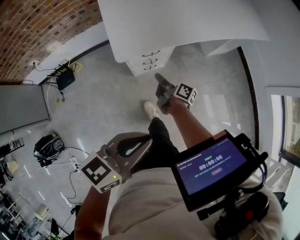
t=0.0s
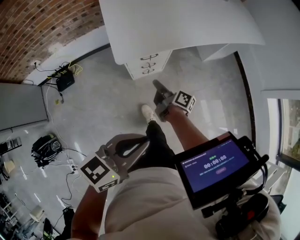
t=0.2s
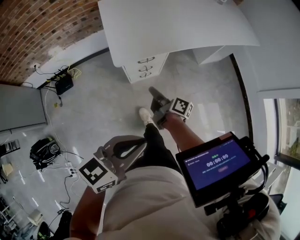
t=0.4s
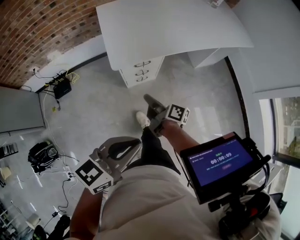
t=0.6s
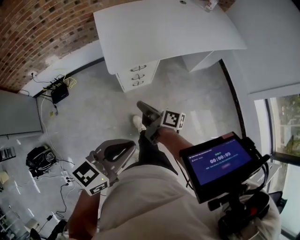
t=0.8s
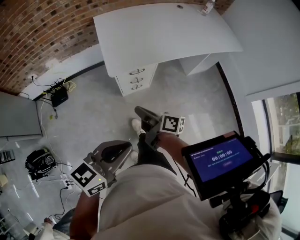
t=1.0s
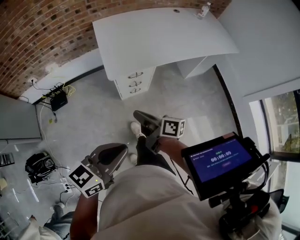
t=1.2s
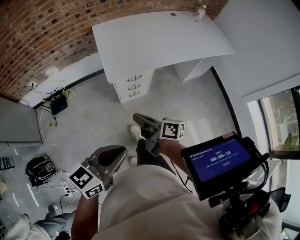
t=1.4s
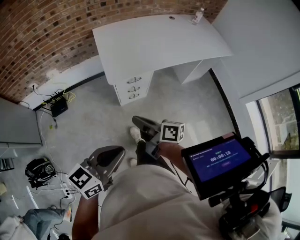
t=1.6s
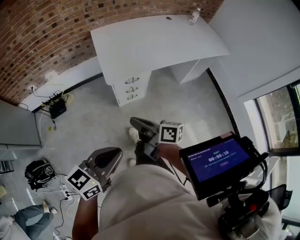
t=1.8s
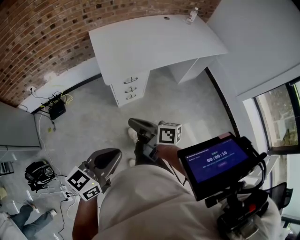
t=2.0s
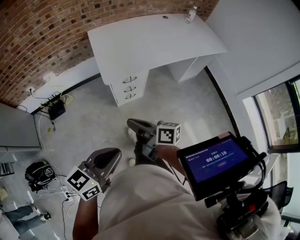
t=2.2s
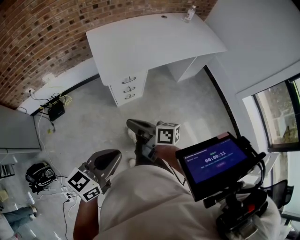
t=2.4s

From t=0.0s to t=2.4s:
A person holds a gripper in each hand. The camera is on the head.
From t=0.0s to t=1.2s: The left gripper goes about 10 cm backward and upward; the right gripper heads upward and backward, covering roughly 30 cm, and rotates about 20 degrees.
From t=1.2s to t=2.4s: The grippers make only small movements.

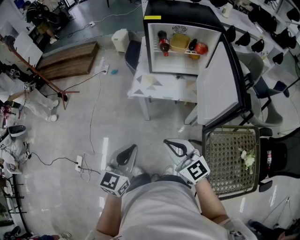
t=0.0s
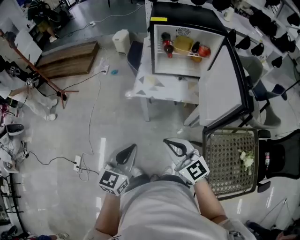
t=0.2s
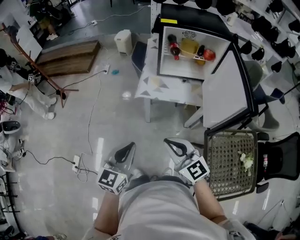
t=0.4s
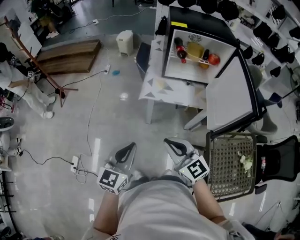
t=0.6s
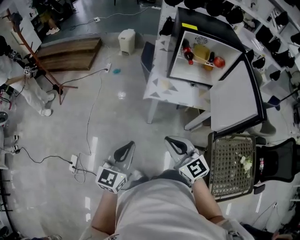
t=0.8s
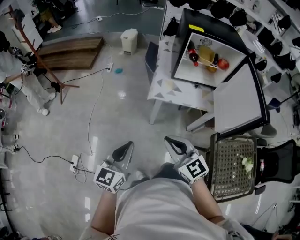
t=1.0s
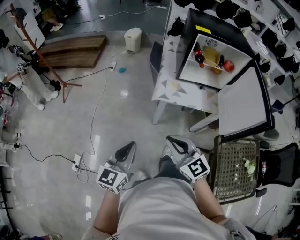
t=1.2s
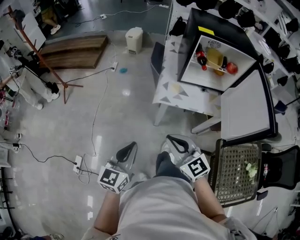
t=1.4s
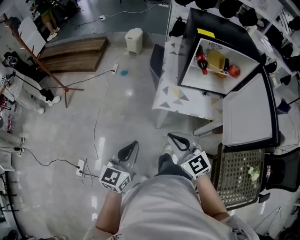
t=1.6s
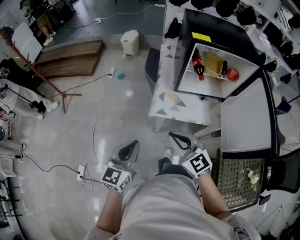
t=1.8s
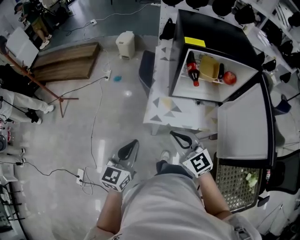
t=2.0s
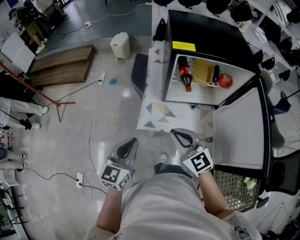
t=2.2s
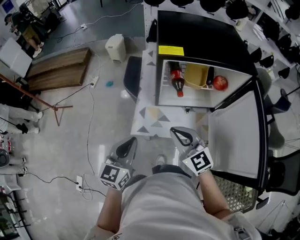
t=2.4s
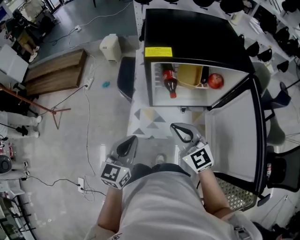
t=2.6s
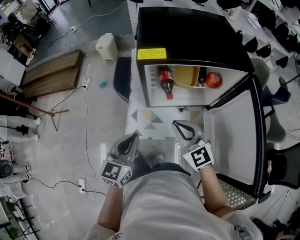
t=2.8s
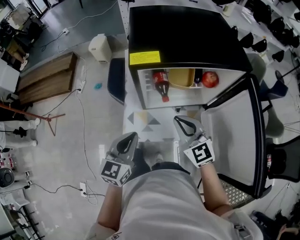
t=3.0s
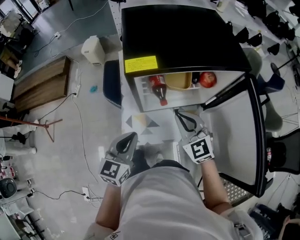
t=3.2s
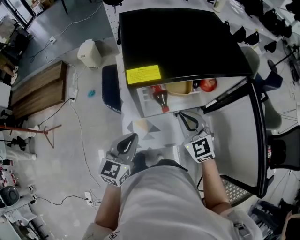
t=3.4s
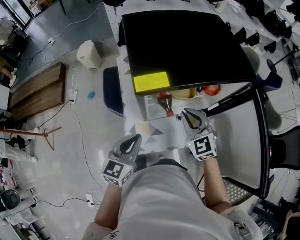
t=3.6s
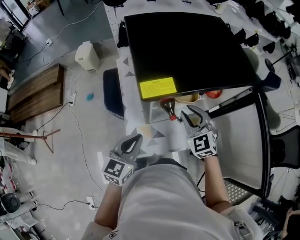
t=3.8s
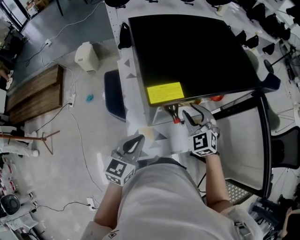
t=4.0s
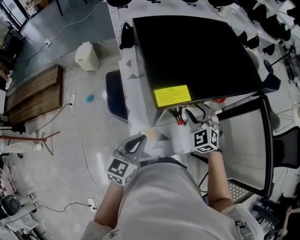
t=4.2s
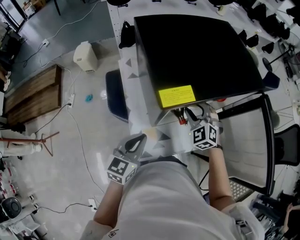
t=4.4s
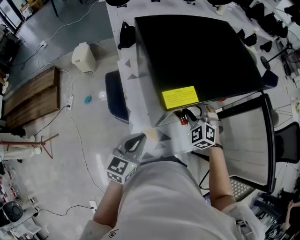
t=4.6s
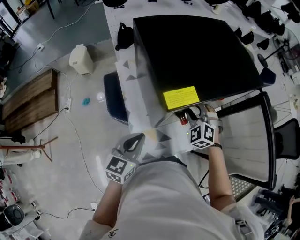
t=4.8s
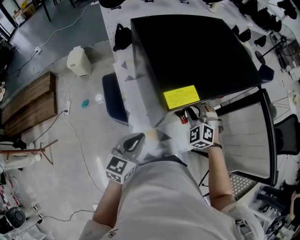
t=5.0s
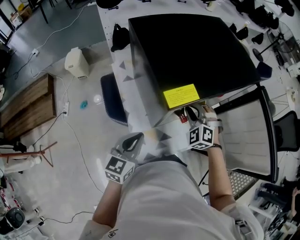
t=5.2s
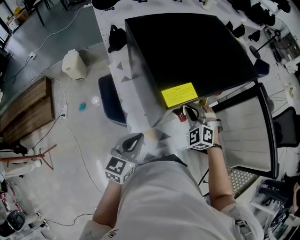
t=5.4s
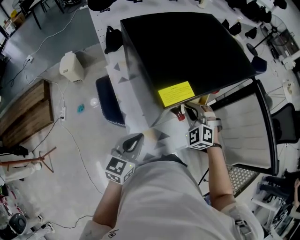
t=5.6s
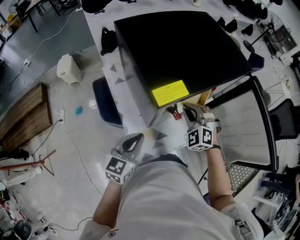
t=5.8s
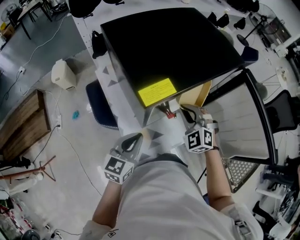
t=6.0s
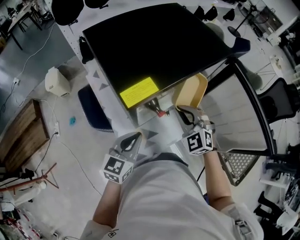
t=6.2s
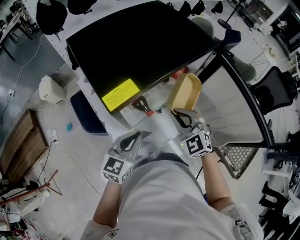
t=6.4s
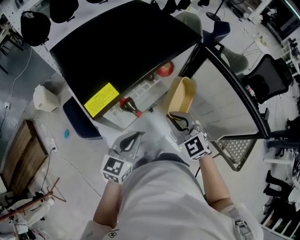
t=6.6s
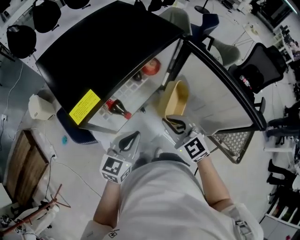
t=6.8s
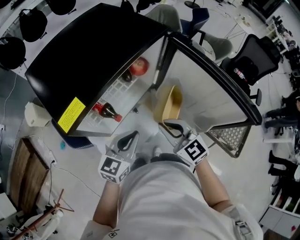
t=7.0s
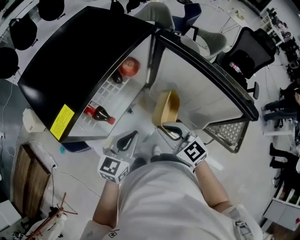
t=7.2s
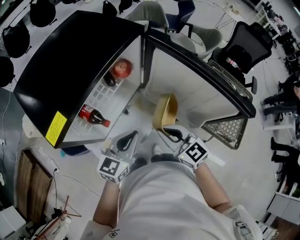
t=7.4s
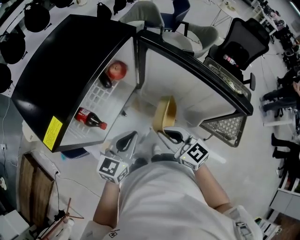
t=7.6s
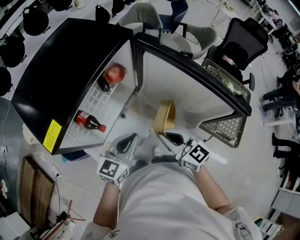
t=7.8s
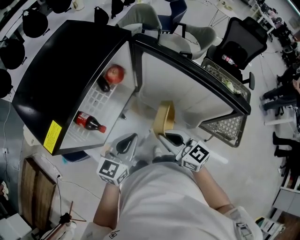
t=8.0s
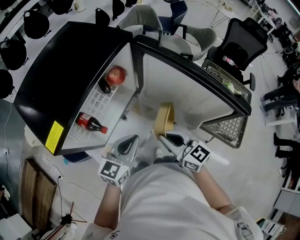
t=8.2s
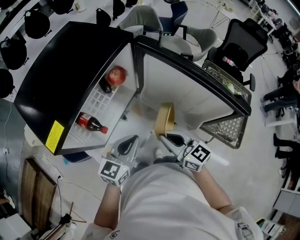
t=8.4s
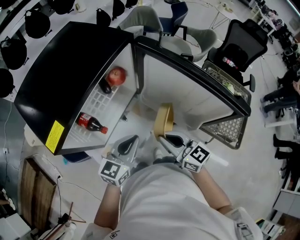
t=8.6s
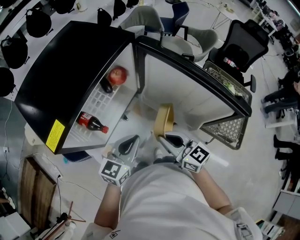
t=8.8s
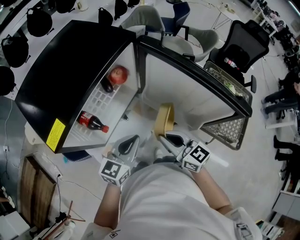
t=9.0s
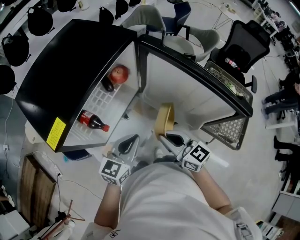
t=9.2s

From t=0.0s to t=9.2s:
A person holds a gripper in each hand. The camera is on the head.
From t=0.0s to t=1.6s: Both grippers move to the left and forward, some 25 cm.
From t=1.6s to t=3.0s: The grippers both shift forward and to the right by some 35 cm.
From t=3.0s to t=4.6s: The right gripper ends up about 20 cm from where it was, changes its angle by some 40 degrees, and opens up. Meanwhile the left gripper changes place by some 15 cm.
From t=4.6s to t=6.2s: The left gripper is displaced to the right by about 5 cm; the right gripper goes some 10 cm to the right, backward and upward, and closes its fingers.
From t=6.2s to t=7.6s: The right gripper is displaced to the right and backward by roughly 20 cm, and twists about 50 degrees clockwise, seen from behind. Meanwhile the left gripper heads to the right, covering roughly 20 cm, and swivels about 20 degrees.
From t=7.6s to t=9.2s: There are only small adjustments of the grippers.

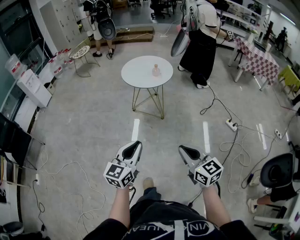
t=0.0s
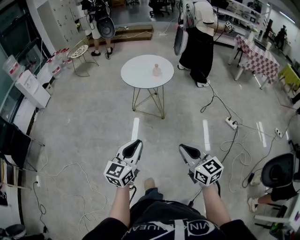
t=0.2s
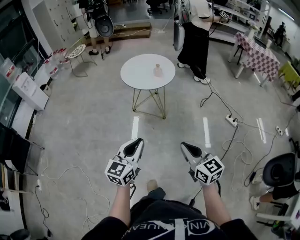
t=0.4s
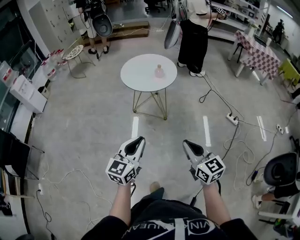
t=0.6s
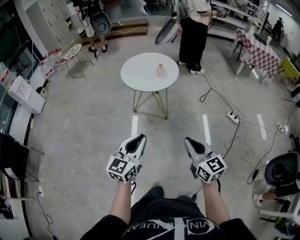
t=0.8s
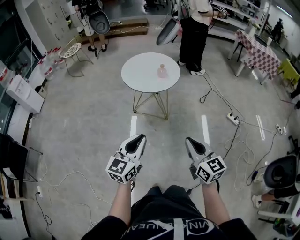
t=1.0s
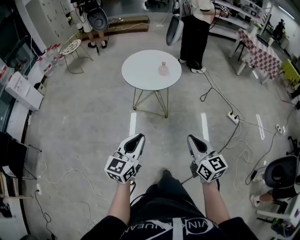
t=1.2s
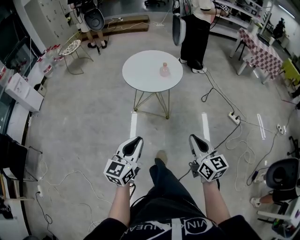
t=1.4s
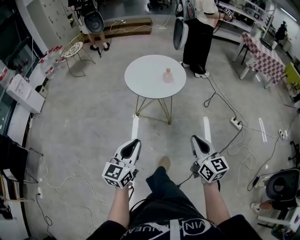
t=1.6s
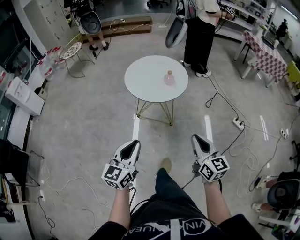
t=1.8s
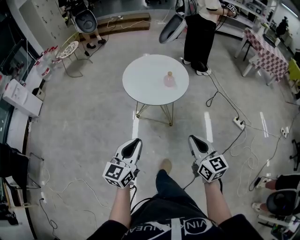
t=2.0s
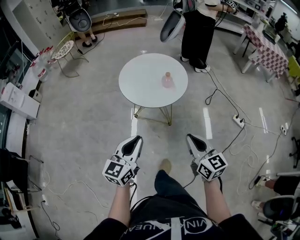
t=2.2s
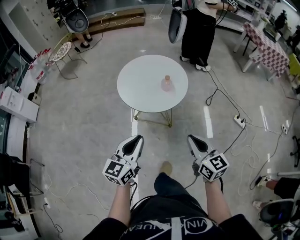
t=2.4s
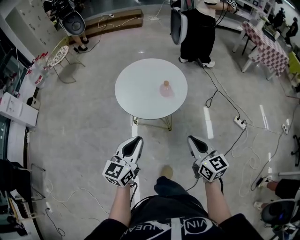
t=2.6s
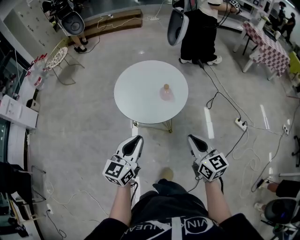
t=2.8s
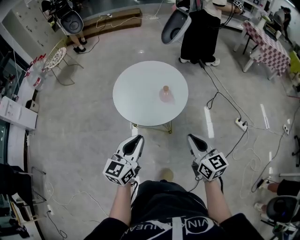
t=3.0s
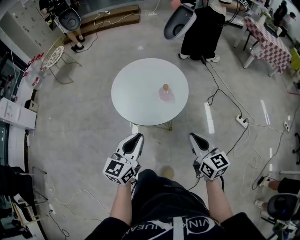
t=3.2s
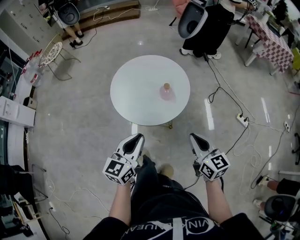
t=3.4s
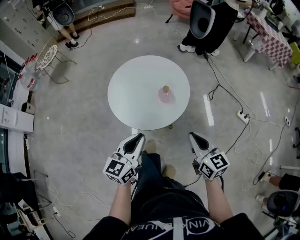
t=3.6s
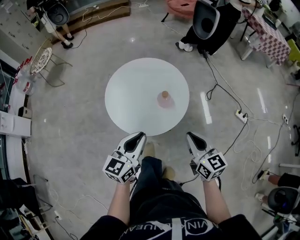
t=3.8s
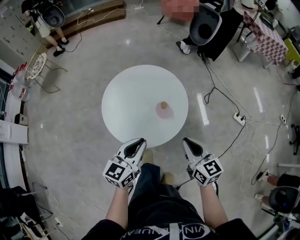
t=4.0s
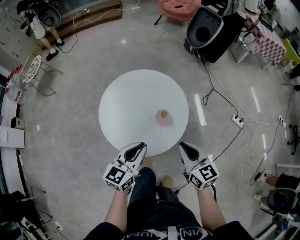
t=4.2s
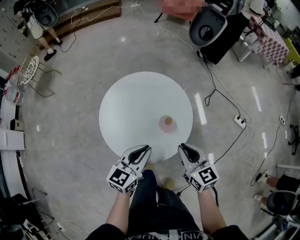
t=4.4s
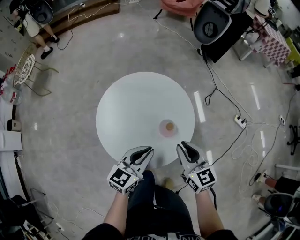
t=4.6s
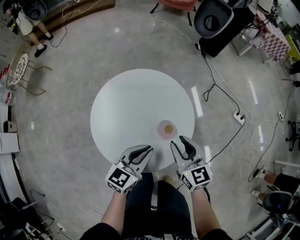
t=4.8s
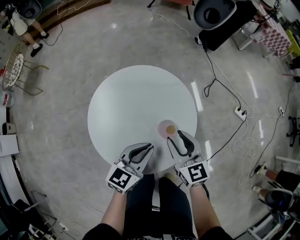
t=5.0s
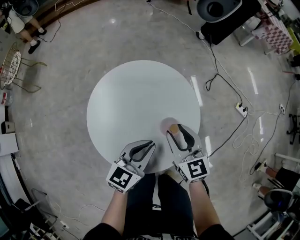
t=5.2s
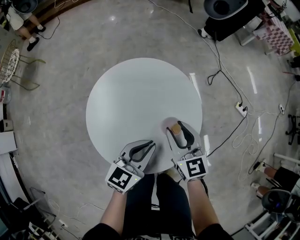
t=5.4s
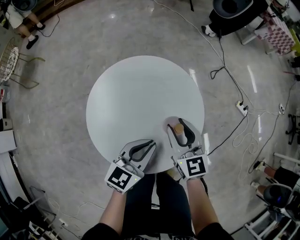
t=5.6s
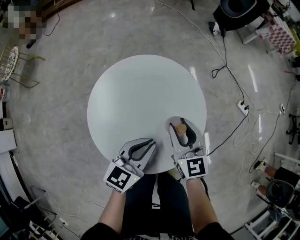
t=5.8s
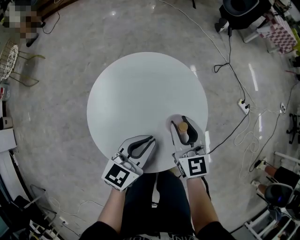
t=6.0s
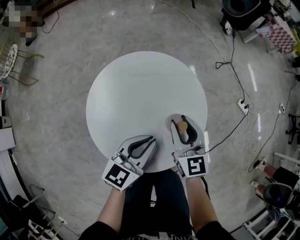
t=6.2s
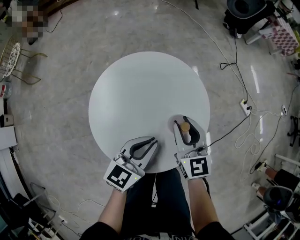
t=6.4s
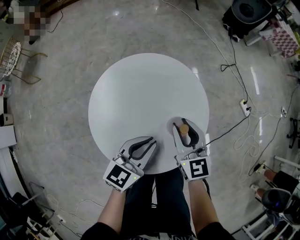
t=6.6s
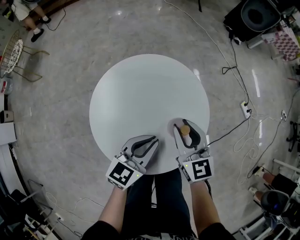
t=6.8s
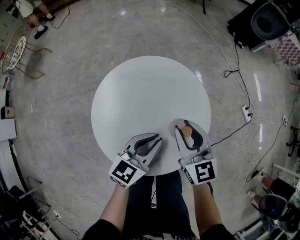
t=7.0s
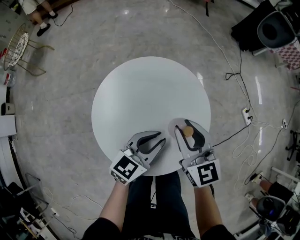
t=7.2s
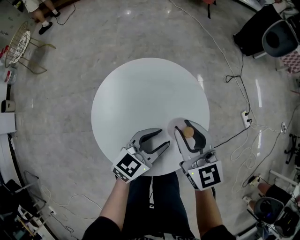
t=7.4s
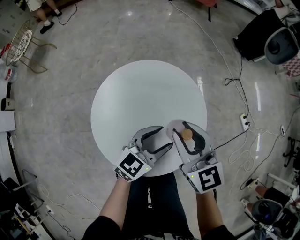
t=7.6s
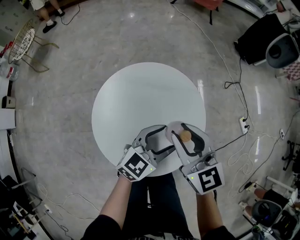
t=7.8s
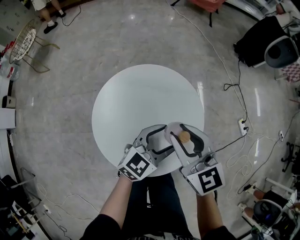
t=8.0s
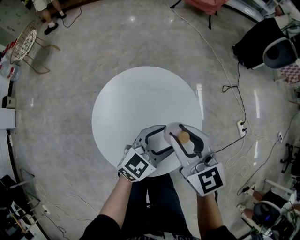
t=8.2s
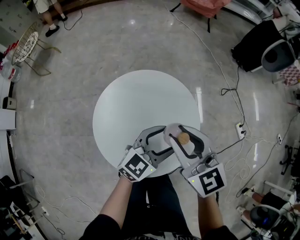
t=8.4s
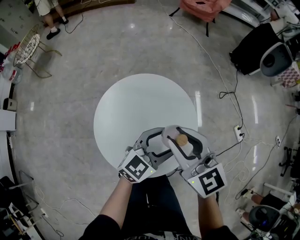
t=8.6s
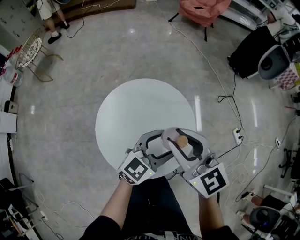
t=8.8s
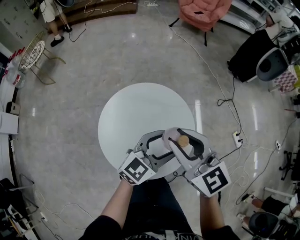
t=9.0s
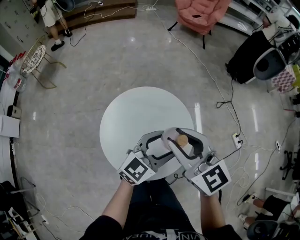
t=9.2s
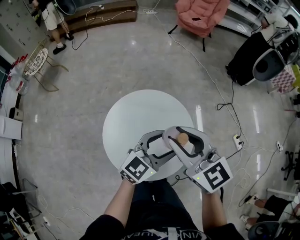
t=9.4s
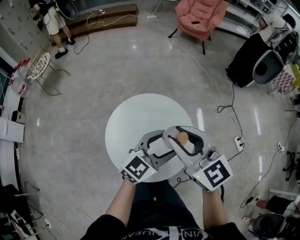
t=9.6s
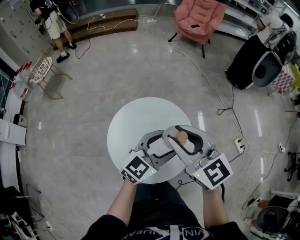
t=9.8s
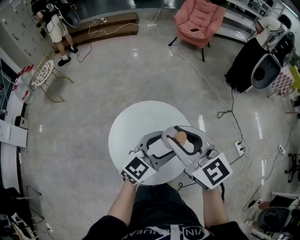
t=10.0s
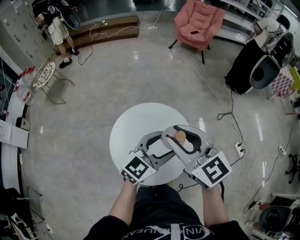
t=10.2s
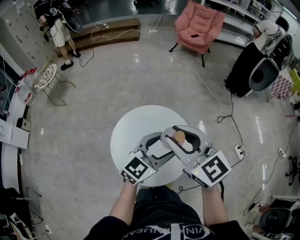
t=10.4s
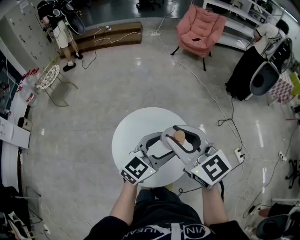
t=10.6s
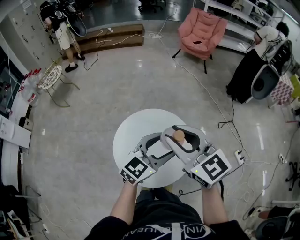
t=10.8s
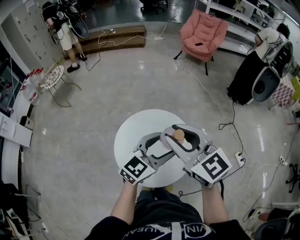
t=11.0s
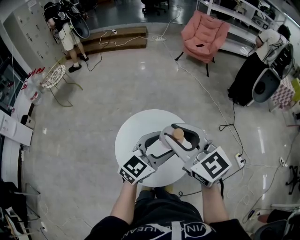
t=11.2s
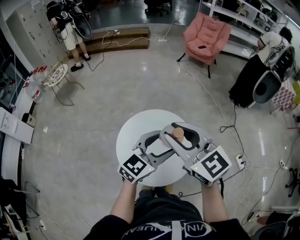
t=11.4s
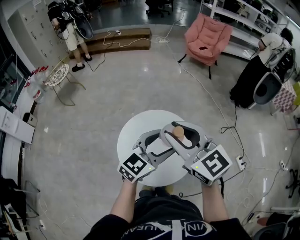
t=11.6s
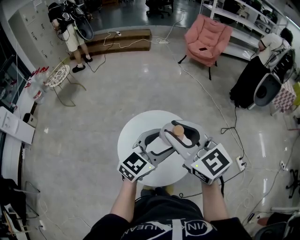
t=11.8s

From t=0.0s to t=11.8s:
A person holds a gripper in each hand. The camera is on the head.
From t=0.0s to t=1.4s: The left gripper moves forward and to the left, some 20 cm; the right gripper heads forward, covering approximately 20 cm.
From t=1.4s to t=3.0s: Both grippers travel together forward, some 30 cm.
From t=3.0s to t=4.4s: Both grippers travel together forward, approximately 20 cm.
From t=4.4s to t=6.0s: The right gripper goes roughly 15 cm forward, to the left and downward, and opens. Meanwhile the left gripper travels forward and downward by about 10 cm.
From t=6.0s to t=7.4s: The left gripper shifts by roughly 5 cm, and opens; the right gripper is displaced upward by some 5 cm.
From t=7.4s to t=8.8s: Both grippers travel together upward, approximately 10 cm. The left gripper opens its fingers.
From t=8.8s to t=10.4s: Both grippers travel together upward, about 15 cm.
From t=10.4s to t=11.8s: The right gripper ends up some 5 cm from where it was; the left gripper moves upward, some 5 cm.
